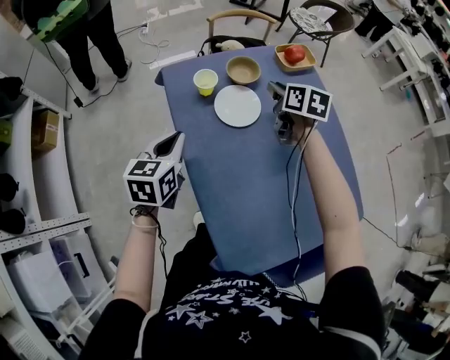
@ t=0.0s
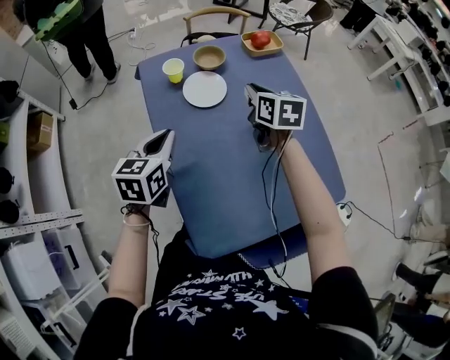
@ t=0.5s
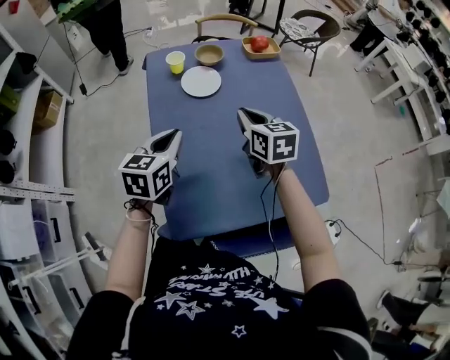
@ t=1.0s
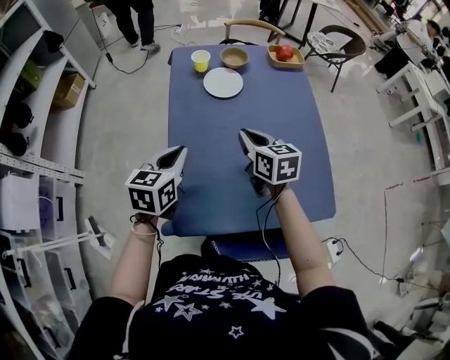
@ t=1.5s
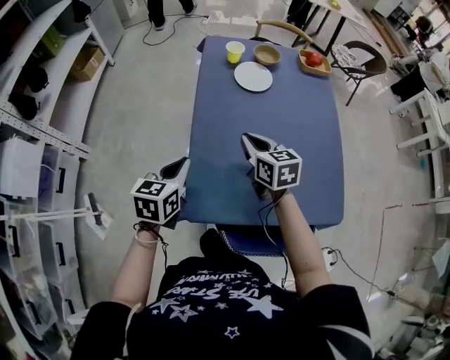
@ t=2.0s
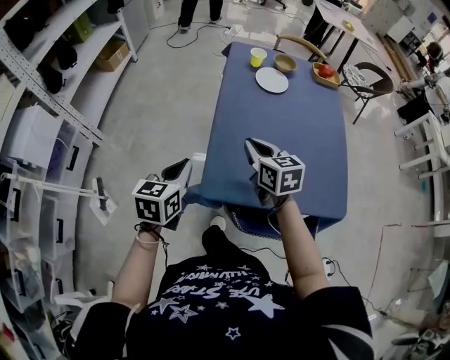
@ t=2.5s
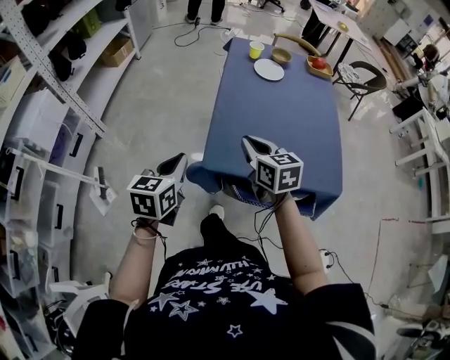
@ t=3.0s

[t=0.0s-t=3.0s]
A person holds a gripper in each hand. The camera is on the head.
t=0.0s to t=1.5s: The left gripper moves backward and to the right, about 25 cm; the right gripper goes roughly 25 cm backward, and changes its angle by about 30 degrees.
t=1.5s to t=3.0s: Both grippers move backward and to the left, roughly 25 cm.

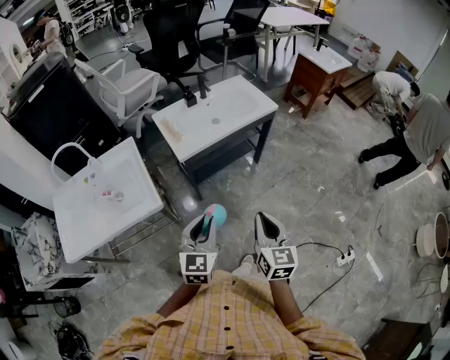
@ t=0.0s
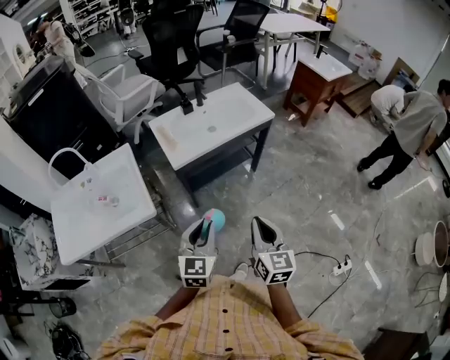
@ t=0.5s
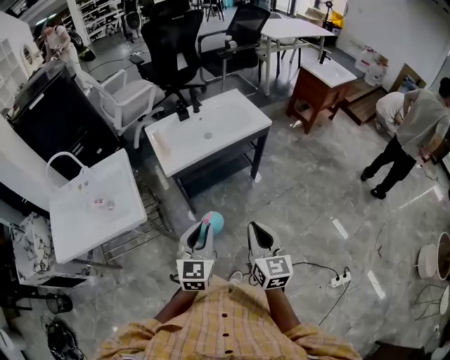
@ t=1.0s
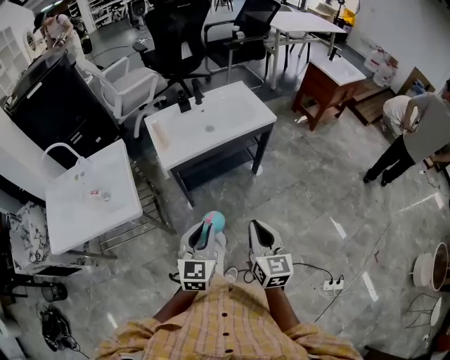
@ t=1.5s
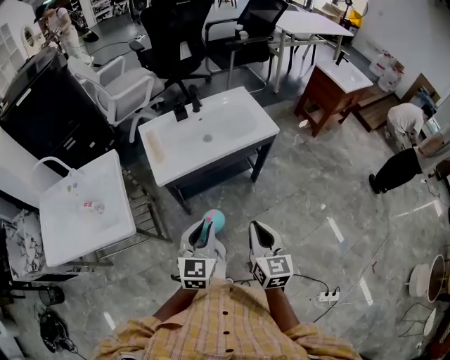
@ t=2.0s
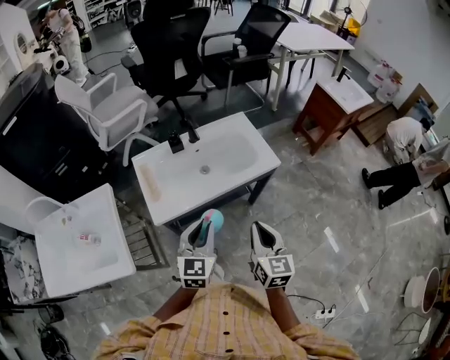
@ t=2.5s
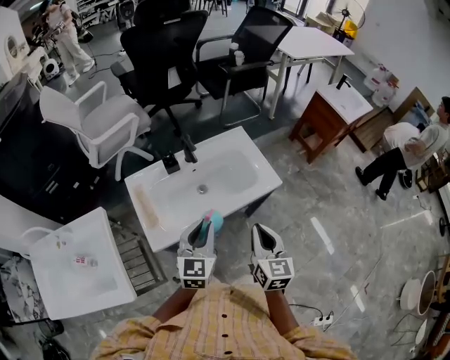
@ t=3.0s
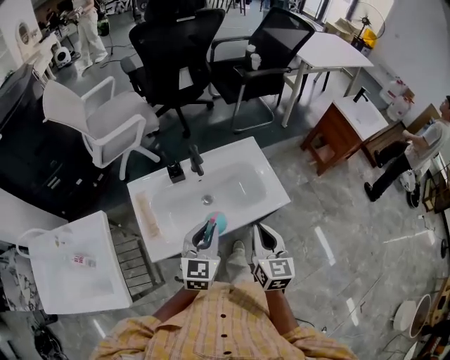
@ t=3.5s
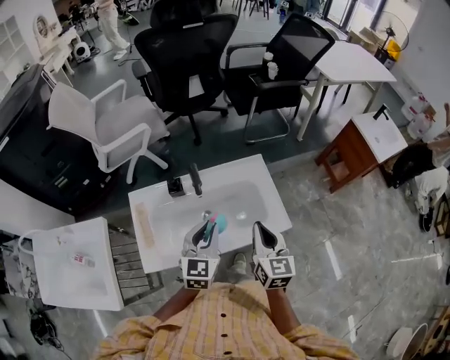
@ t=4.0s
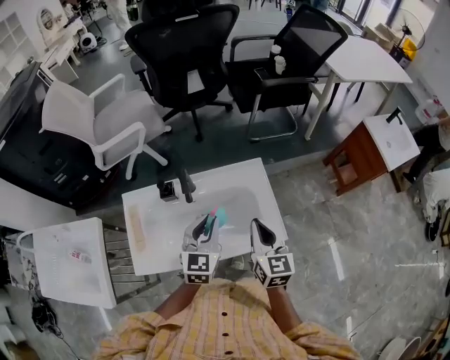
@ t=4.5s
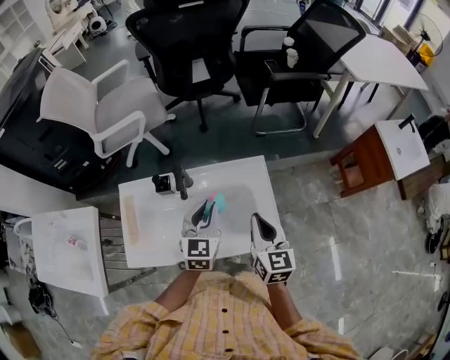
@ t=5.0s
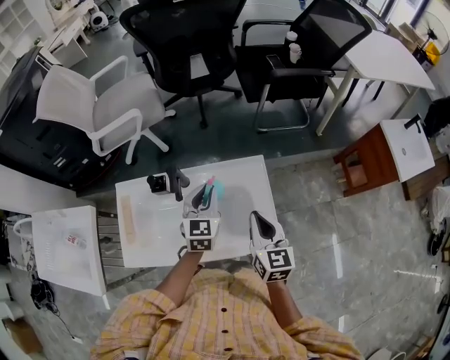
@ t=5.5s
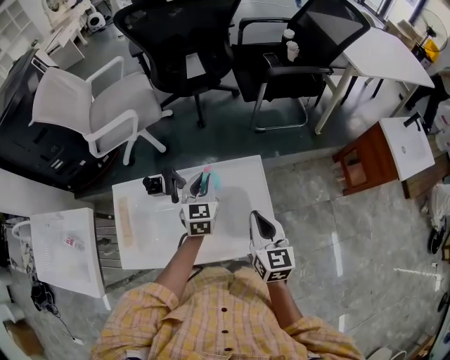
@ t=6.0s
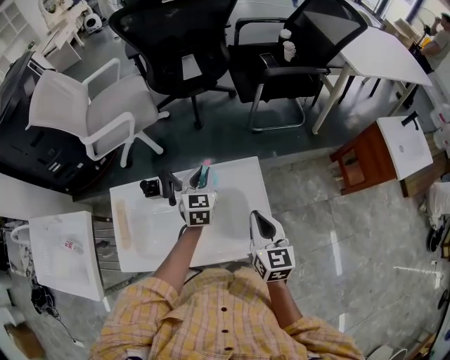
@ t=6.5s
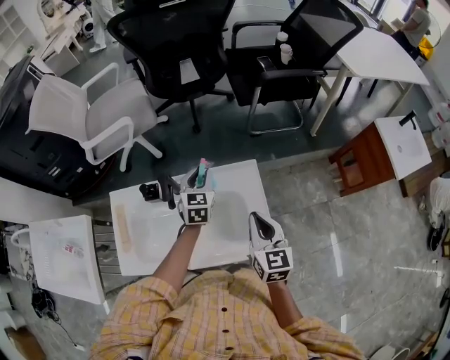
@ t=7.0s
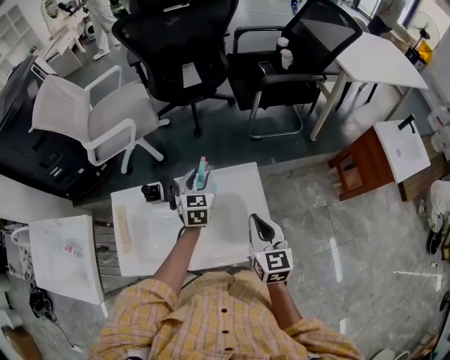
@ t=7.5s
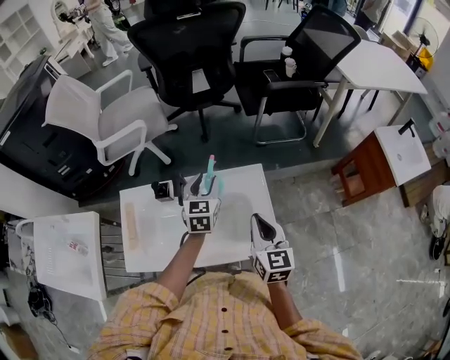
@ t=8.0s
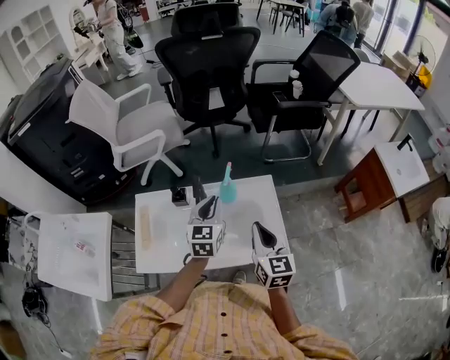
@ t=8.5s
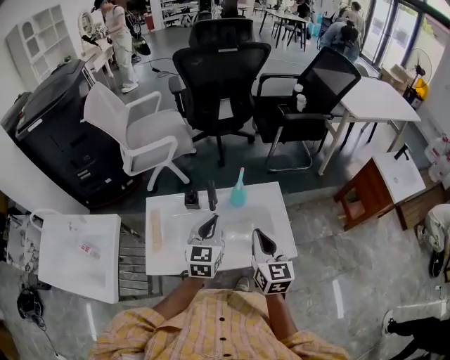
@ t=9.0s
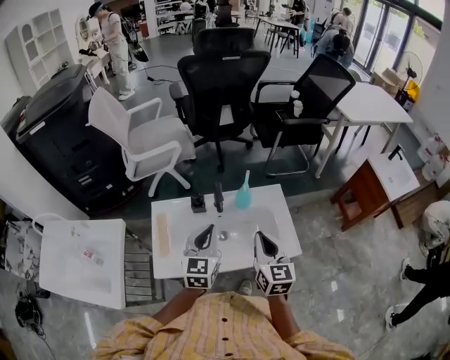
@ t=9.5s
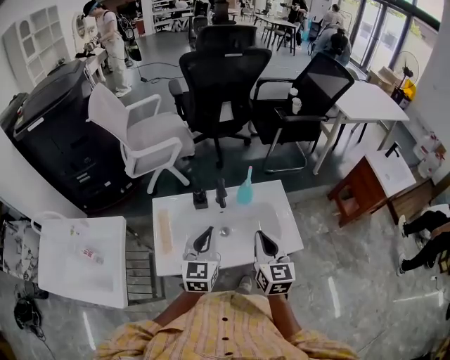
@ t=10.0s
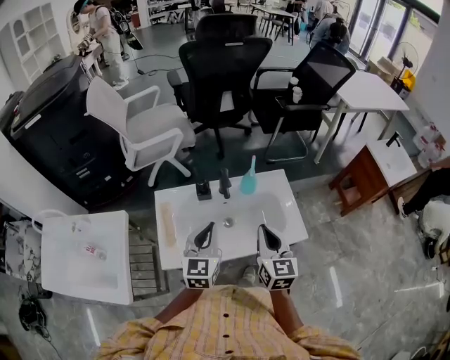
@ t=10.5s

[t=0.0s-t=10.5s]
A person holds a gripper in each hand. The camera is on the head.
t=0.0s to t=2.0s: The two grippers go some 20 cm forward and to the right.
t=2.0s to t=4.0s: The two grippers travel together, forward, roughly 50 cm.
t=4.0s to t=6.5s: The right gripper travels forward, to the right and downward by approximately 20 cm. Meanwhile the left gripper is displaced forward and downward by approximately 30 cm.
t=6.5s to t=8.5s: The left gripper is displaced backward, upward and to the left by roughly 15 cm, and opens, then closes once more. The right gripper moves to the left, backward and upward, about 10 cm.
t=8.5s to t=10.5s: The left gripper is displaced backward and to the left by about 20 cm, while the right gripper travels to the left and backward by about 15 cm.

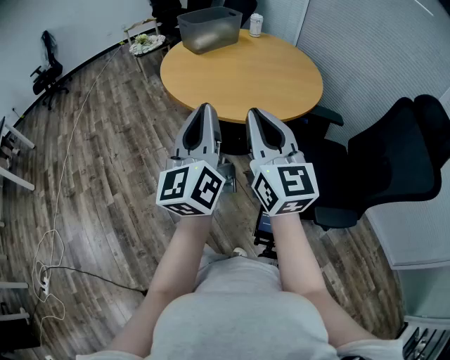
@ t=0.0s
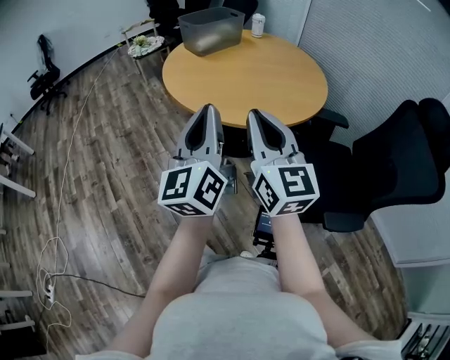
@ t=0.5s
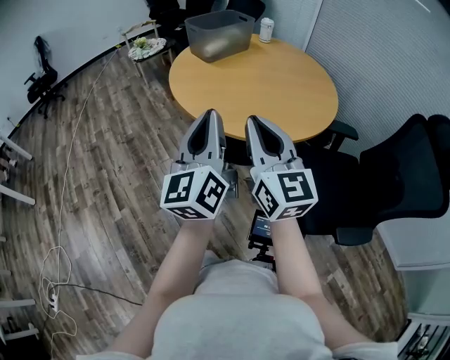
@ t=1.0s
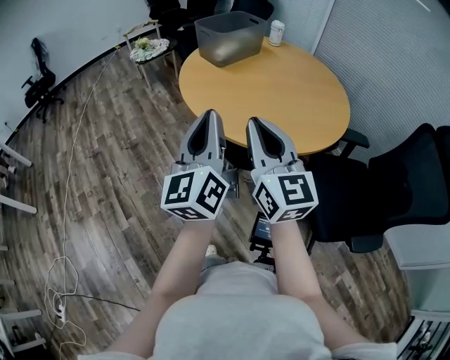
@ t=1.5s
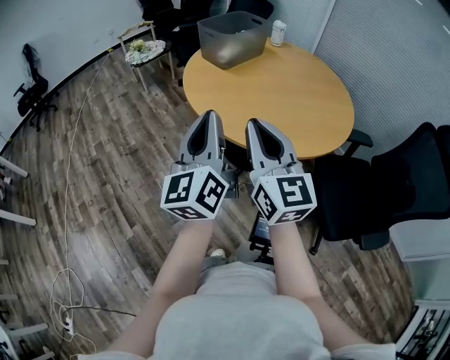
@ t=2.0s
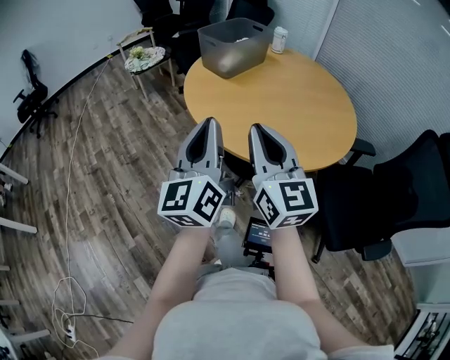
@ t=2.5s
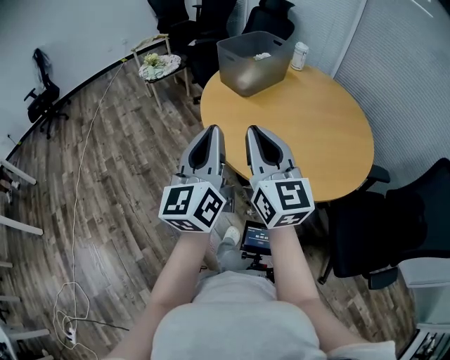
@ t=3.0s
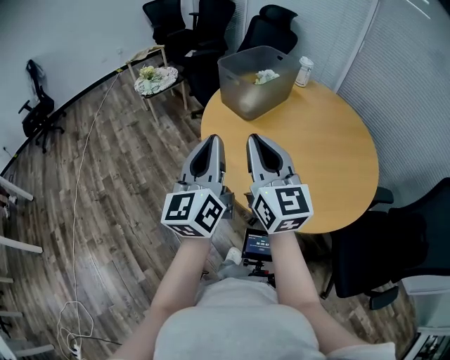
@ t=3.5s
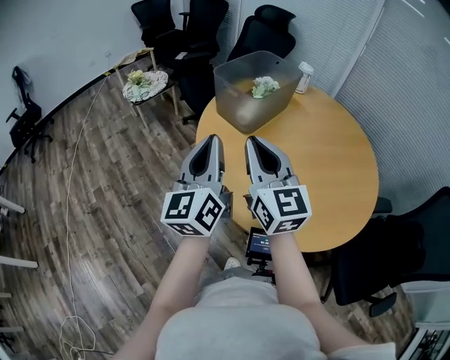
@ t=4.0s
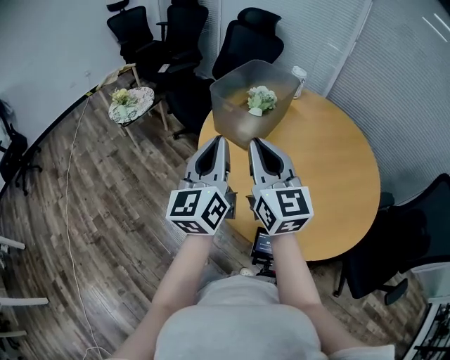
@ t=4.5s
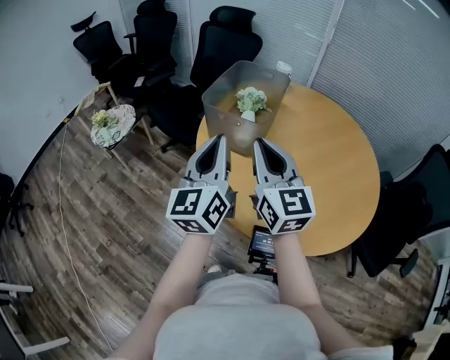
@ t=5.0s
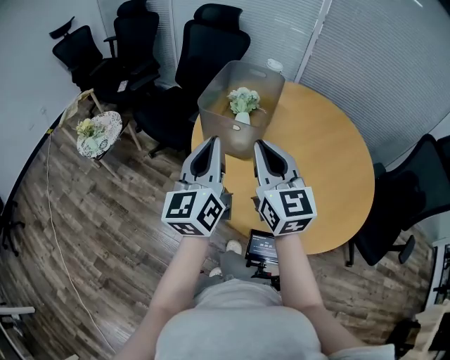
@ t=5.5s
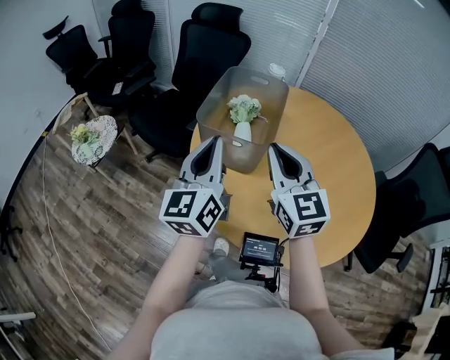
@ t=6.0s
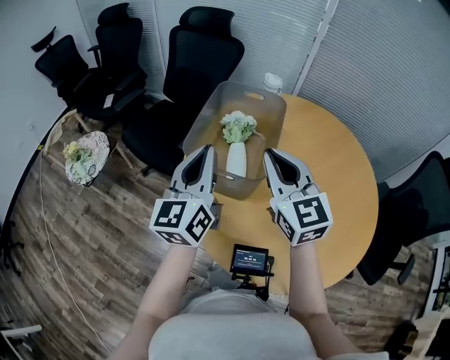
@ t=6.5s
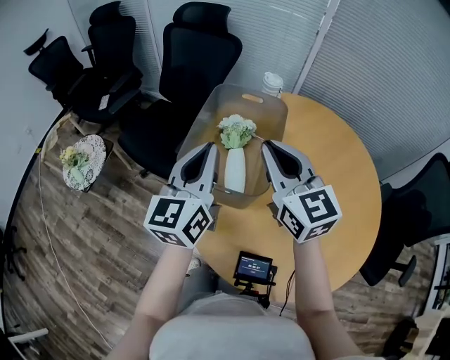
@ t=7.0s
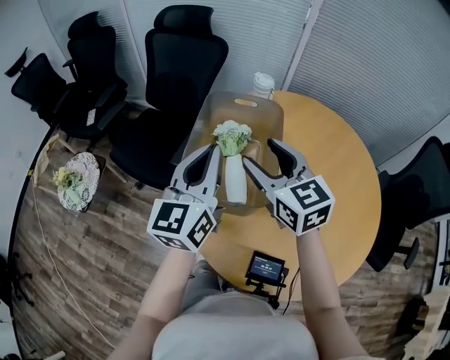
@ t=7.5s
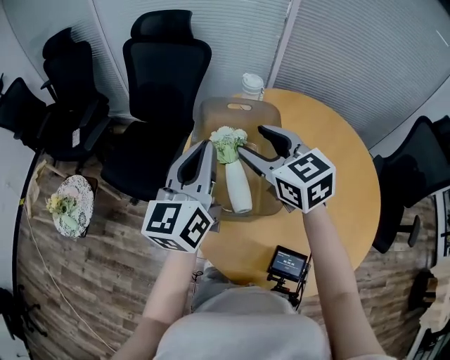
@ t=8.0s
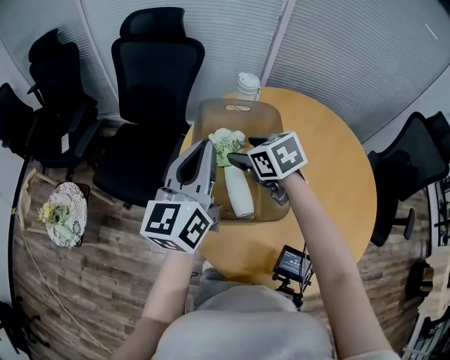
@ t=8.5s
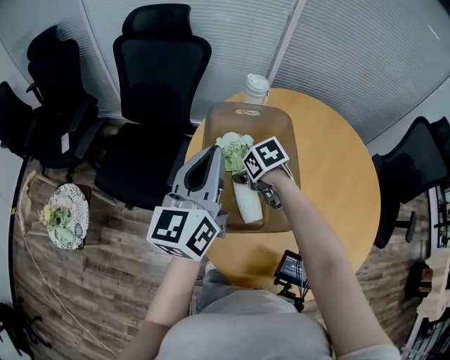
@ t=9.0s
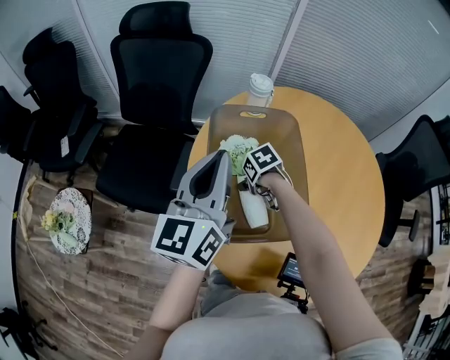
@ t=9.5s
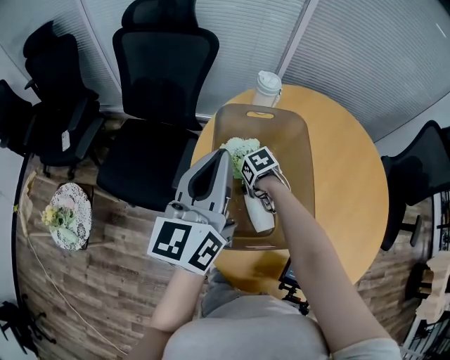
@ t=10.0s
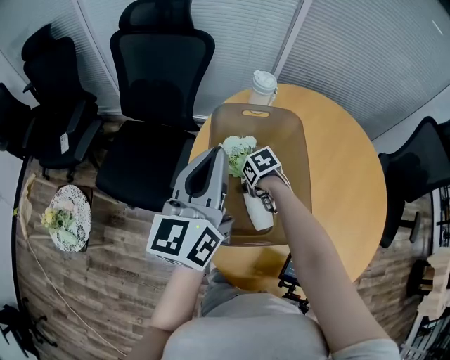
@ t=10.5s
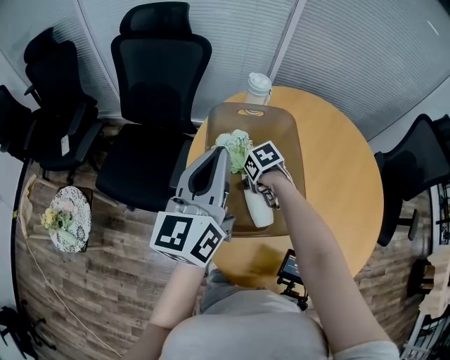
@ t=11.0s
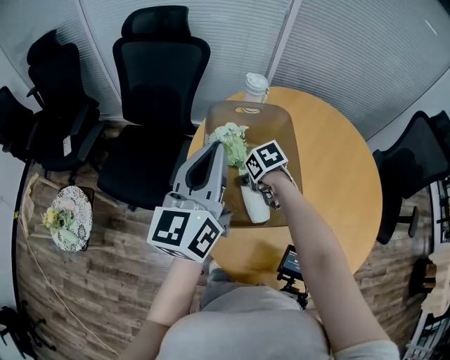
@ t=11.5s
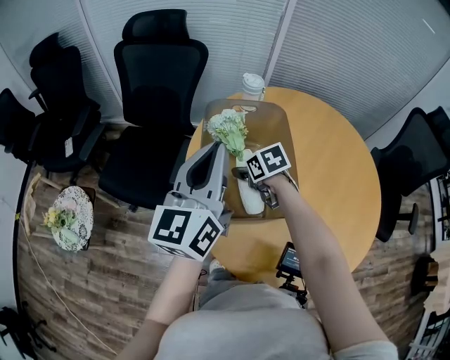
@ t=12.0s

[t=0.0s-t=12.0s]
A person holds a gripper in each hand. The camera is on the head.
t=0.0s to t=2.0s: The right gripper shifts some 30 cm to the left and forward. The left gripper is displaced forward and to the left by roughly 30 cm.
t=2.0s to t=4.0s: The two grippers go about 35 cm forward.
t=4.0s to t=6.0s: The right gripper shifts by roughly 20 cm, and changes its angle by about 30 degrees; the left gripper ends up roughly 25 cm from where it was, and swivels roughly 30 degrees.
t=6.0s to t=8.0s: Both grippers move forward, approximately 20 cm. The right gripper opens.
t=8.0s to t=10.0s: The left gripper moves some 10 cm. Meanwhile the right gripper is displaced downward by approximately 35 cm, and points its fingers some 60 degrees further downward.
t=10.0s to t=12.0s: The left gripper changes place by some 5 cm; the right gripper heads upward, covering some 10 cm, and rotates approximately 30 degrees.

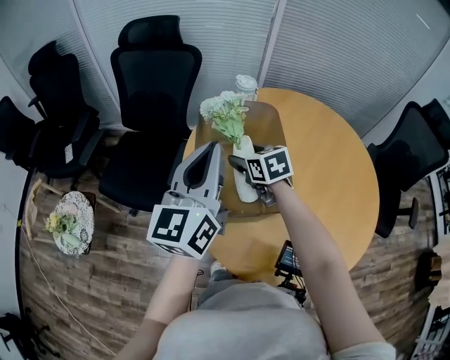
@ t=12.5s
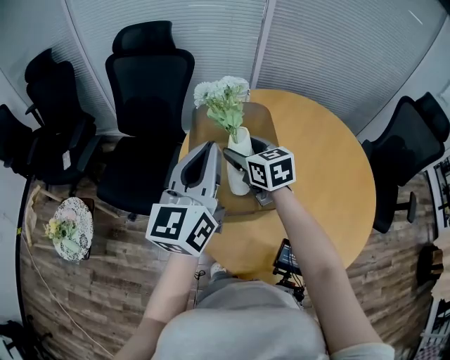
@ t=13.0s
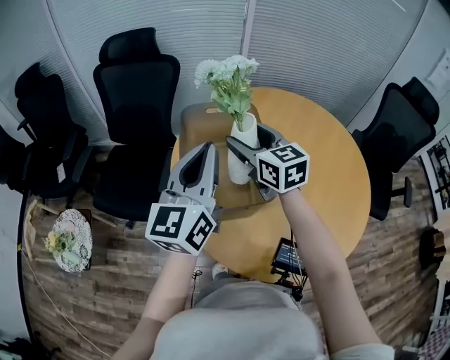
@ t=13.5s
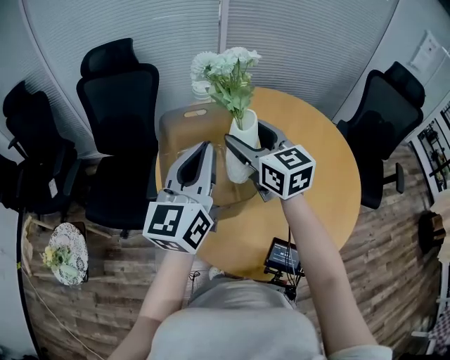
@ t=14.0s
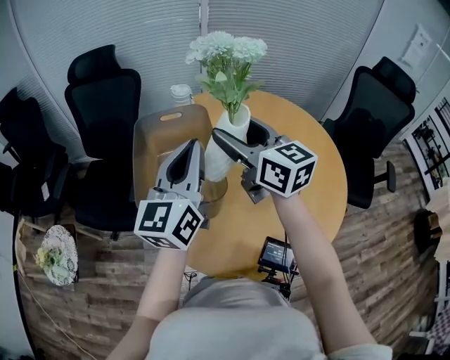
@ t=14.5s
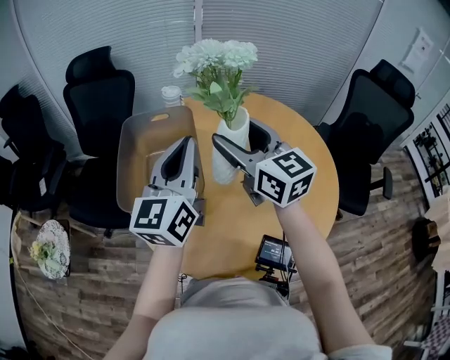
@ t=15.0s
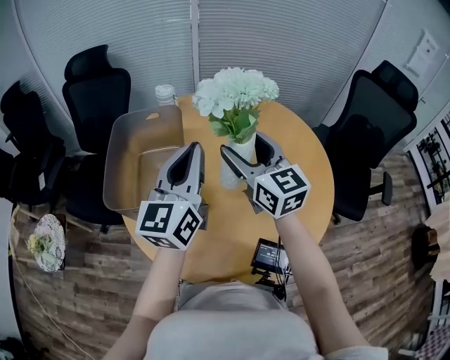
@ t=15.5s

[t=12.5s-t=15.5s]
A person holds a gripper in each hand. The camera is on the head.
t=12.5s to t=14.0s: The right gripper travels upward and to the right by approximately 20 cm, and angles its fingers upward, by some 30 degrees. Meanwhile the left gripper moves to the right, roughly 10 cm.
t=14.0s to t=15.5s: The grippers both shift to the right by some 15 cm.
